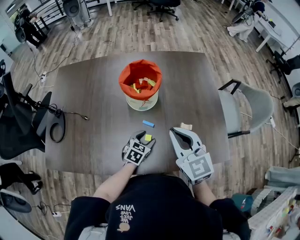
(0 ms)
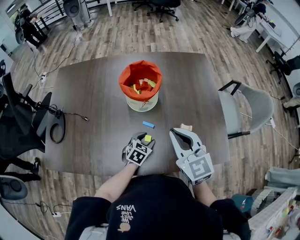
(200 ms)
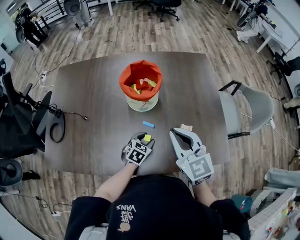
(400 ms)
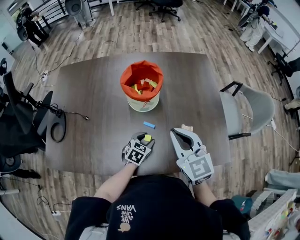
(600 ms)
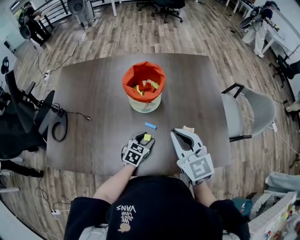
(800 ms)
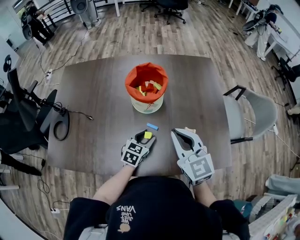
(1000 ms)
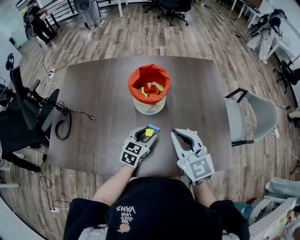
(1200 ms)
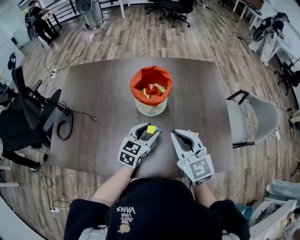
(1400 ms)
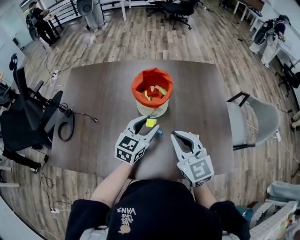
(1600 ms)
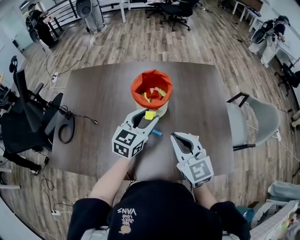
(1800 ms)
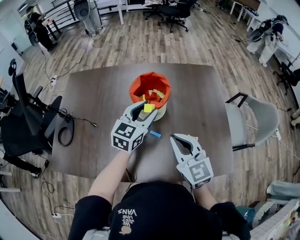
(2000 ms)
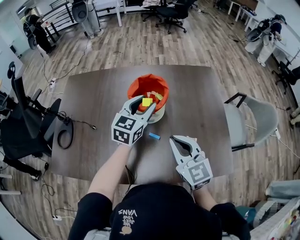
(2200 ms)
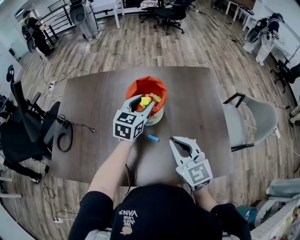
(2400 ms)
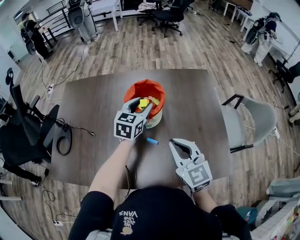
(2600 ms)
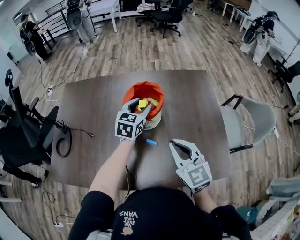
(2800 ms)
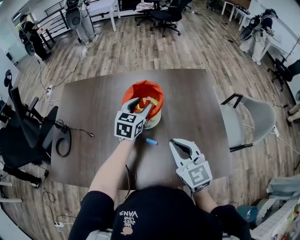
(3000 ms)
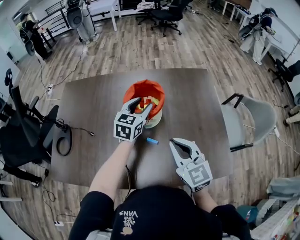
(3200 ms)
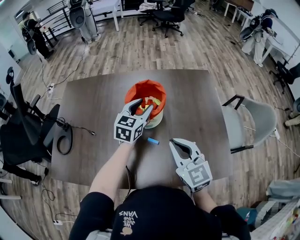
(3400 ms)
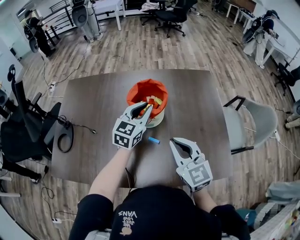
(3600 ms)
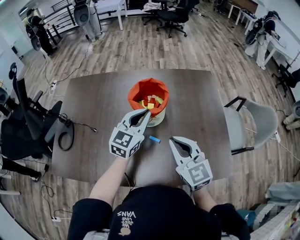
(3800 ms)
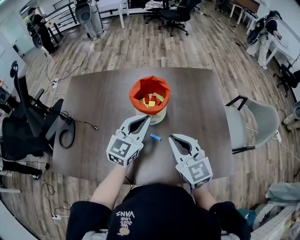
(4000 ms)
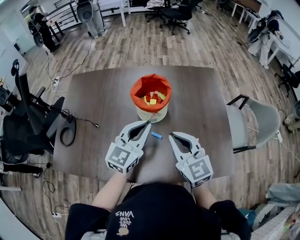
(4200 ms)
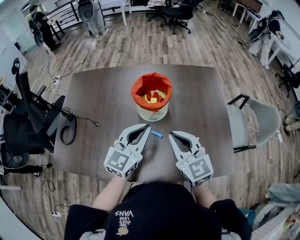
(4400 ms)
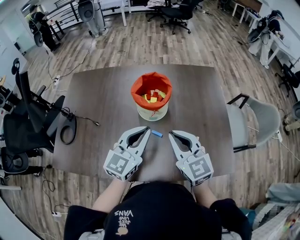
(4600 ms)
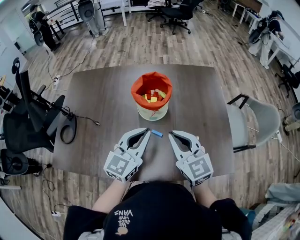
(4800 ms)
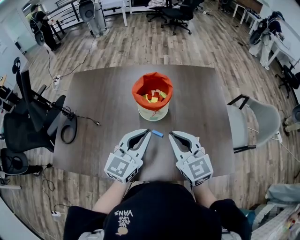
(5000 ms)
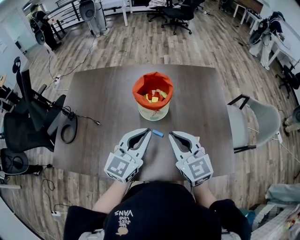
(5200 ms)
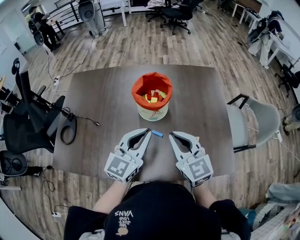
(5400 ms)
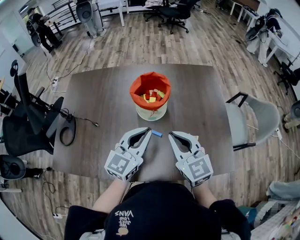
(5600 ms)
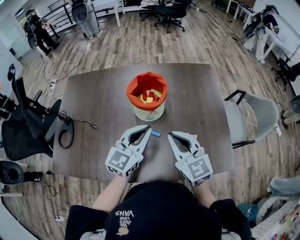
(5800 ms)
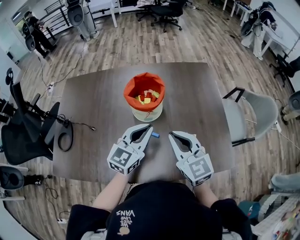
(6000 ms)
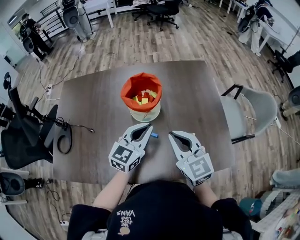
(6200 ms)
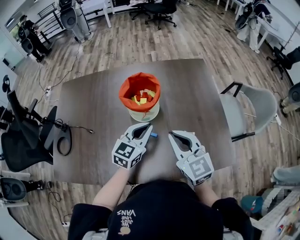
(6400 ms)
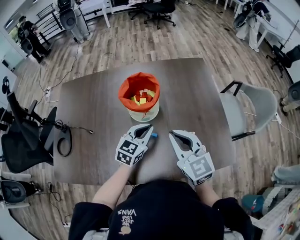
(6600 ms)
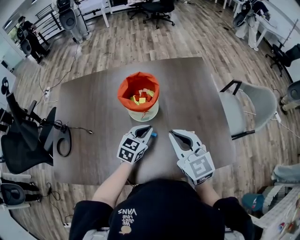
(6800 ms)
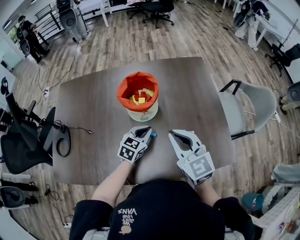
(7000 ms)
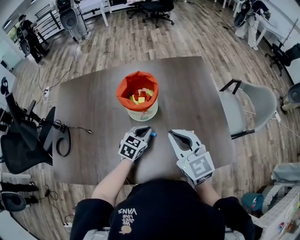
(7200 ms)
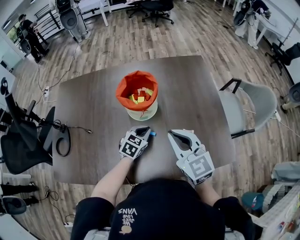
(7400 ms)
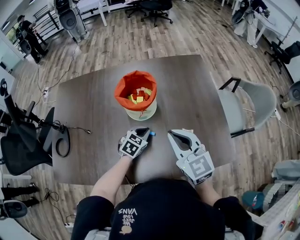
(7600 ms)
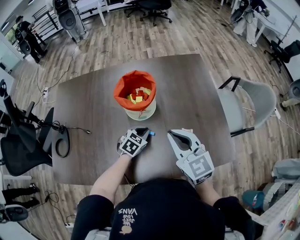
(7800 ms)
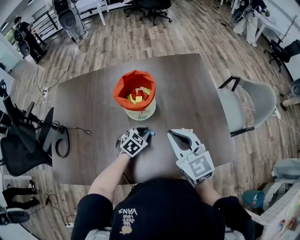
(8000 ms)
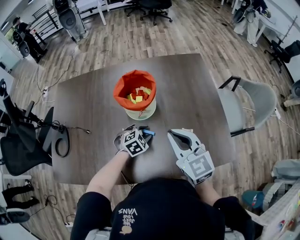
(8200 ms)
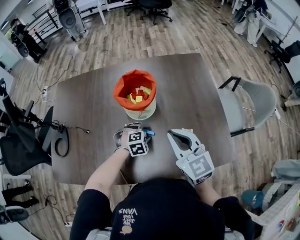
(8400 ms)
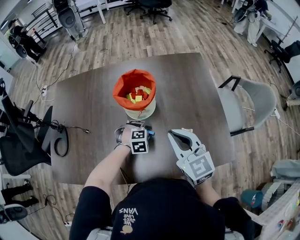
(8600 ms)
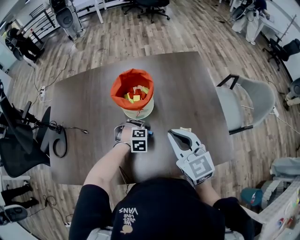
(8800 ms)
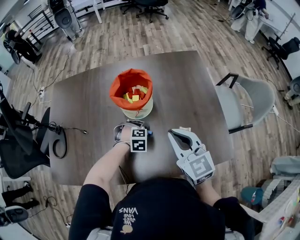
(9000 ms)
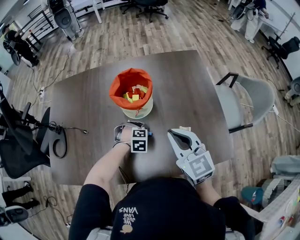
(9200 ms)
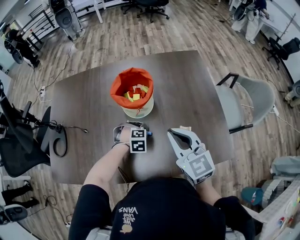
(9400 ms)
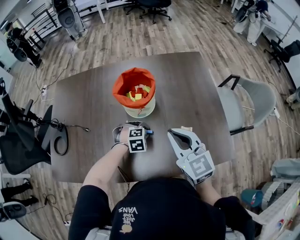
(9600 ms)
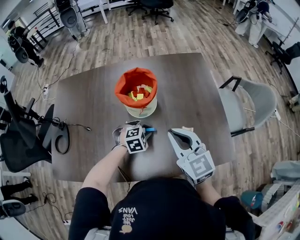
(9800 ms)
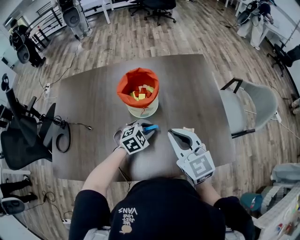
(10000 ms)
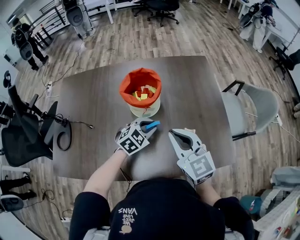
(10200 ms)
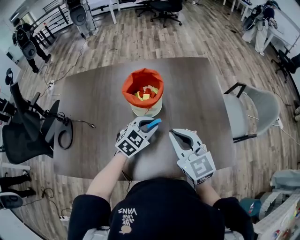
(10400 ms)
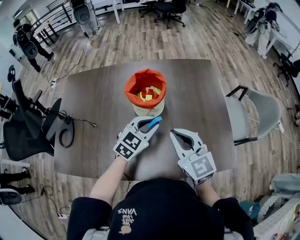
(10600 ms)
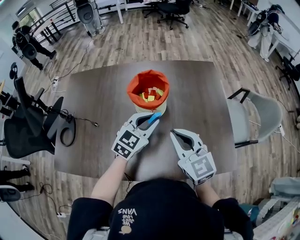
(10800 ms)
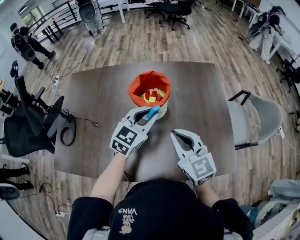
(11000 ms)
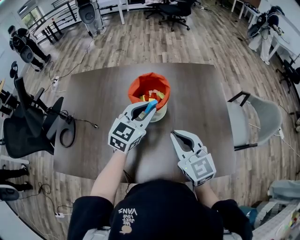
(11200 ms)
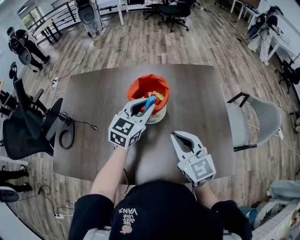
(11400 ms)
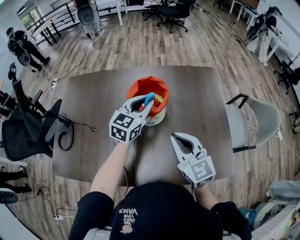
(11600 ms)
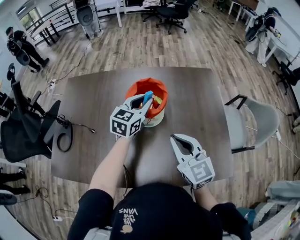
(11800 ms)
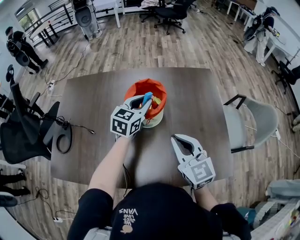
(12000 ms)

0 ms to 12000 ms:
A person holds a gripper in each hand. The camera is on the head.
0 ms to 1600 ms: The left gripper goes approximately 20 cm upward, and swivels about 30 degrees.
1600 ms to 3000 ms: The left gripper heads forward, covering approximately 15 cm.
3000 ms to 4400 ms: The left gripper moves backward, some 15 cm, and closes up.
4400 ms to 6000 ms: The grippers make only small movements.
6000 ms to 7600 ms: The left gripper is displaced downward by approximately 20 cm, and angles its fingers downward, by about 40 degrees.
7600 ms to 9000 ms: The left gripper heads downward, covering approximately 5 cm, rolls clockwise, seen from behind, by some 50 degrees, and opens.
9000 ms to 10400 ms: The left gripper heads upward, covering approximately 15 cm, and tips its fingers upward by roughly 40 degrees.
10400 ms to 12000 ms: The left gripper shifts roughly 15 cm forward and upward, and rotates about 30 degrees.

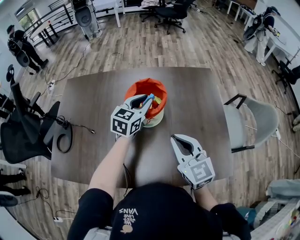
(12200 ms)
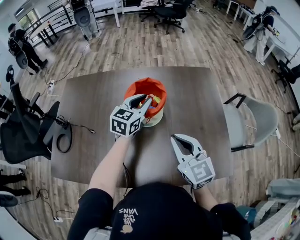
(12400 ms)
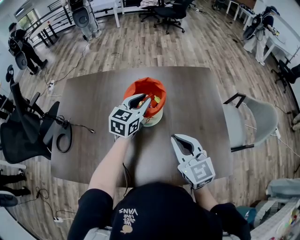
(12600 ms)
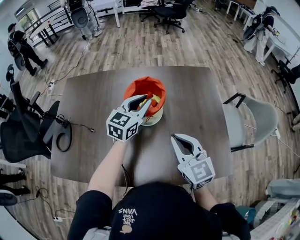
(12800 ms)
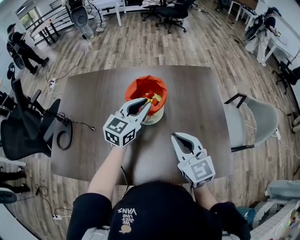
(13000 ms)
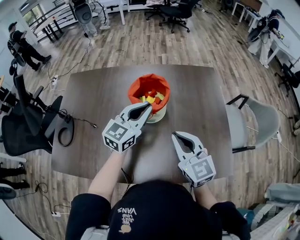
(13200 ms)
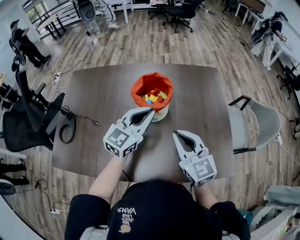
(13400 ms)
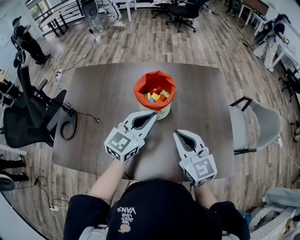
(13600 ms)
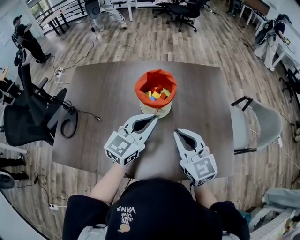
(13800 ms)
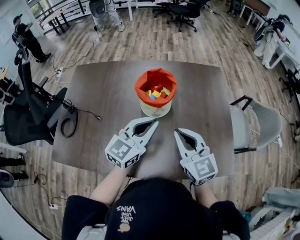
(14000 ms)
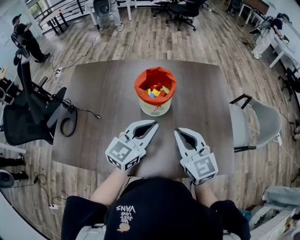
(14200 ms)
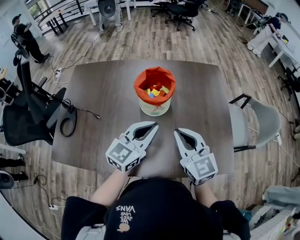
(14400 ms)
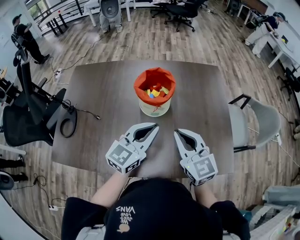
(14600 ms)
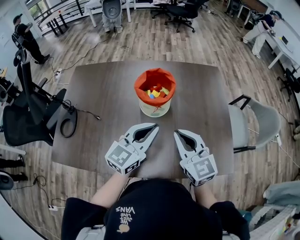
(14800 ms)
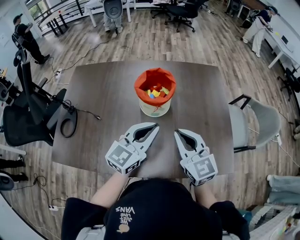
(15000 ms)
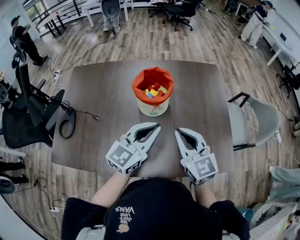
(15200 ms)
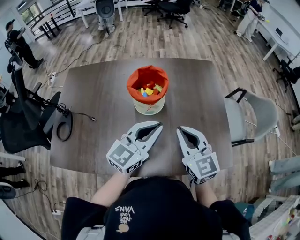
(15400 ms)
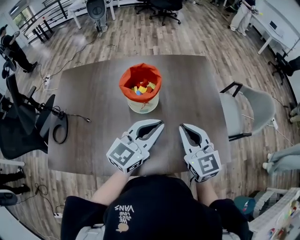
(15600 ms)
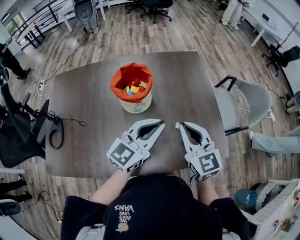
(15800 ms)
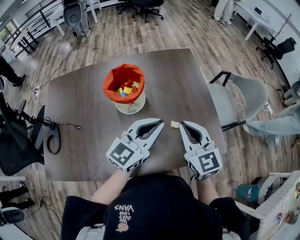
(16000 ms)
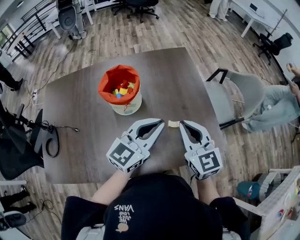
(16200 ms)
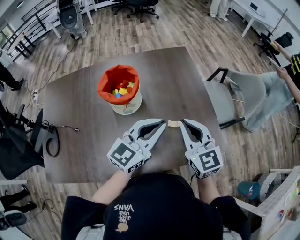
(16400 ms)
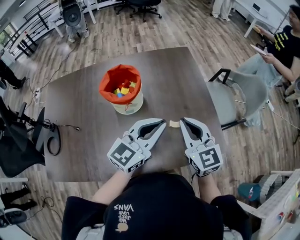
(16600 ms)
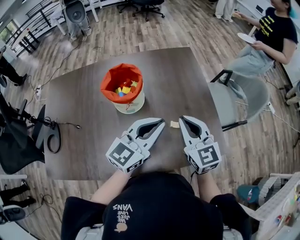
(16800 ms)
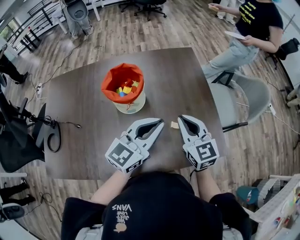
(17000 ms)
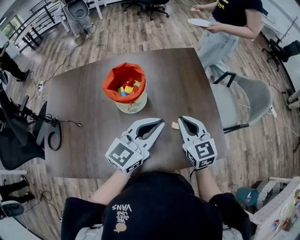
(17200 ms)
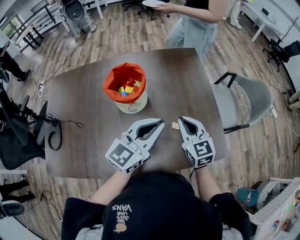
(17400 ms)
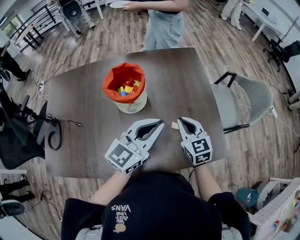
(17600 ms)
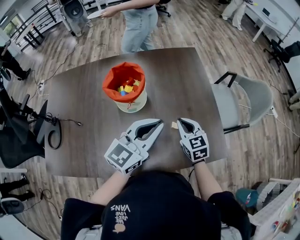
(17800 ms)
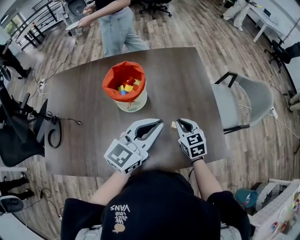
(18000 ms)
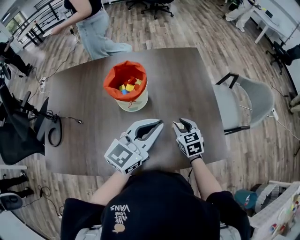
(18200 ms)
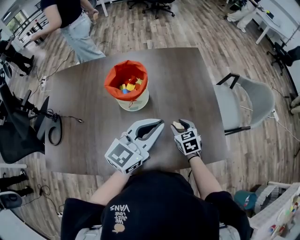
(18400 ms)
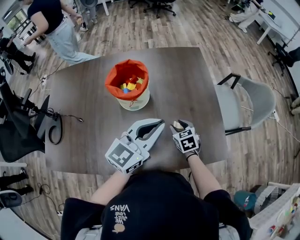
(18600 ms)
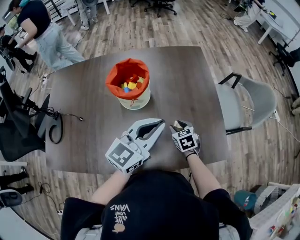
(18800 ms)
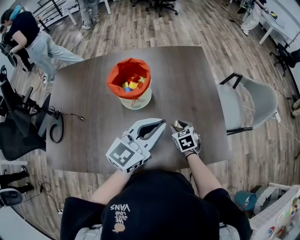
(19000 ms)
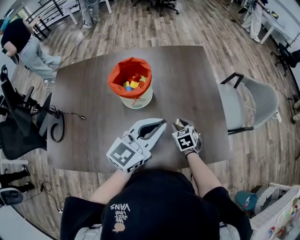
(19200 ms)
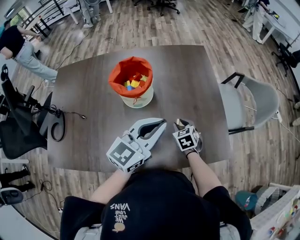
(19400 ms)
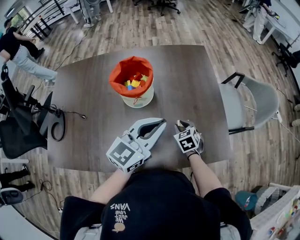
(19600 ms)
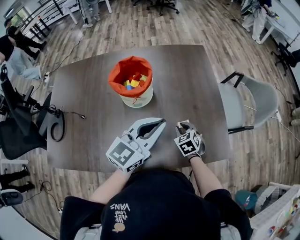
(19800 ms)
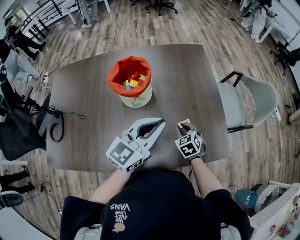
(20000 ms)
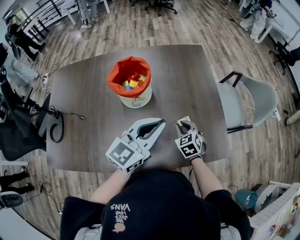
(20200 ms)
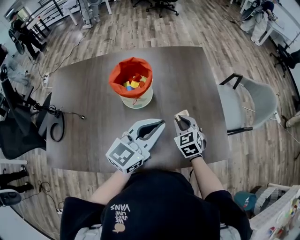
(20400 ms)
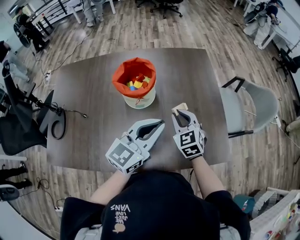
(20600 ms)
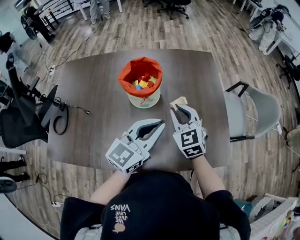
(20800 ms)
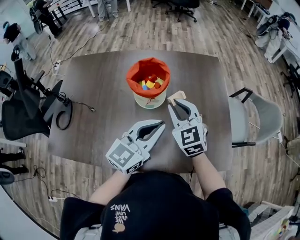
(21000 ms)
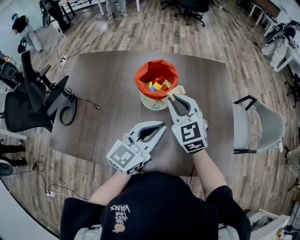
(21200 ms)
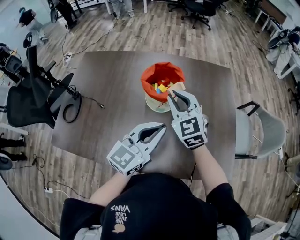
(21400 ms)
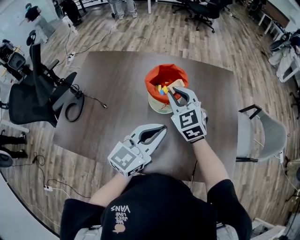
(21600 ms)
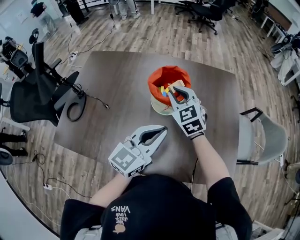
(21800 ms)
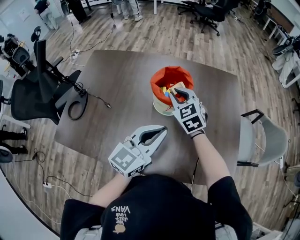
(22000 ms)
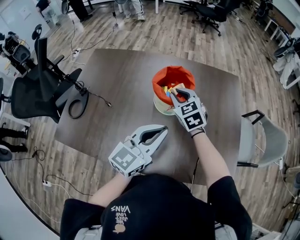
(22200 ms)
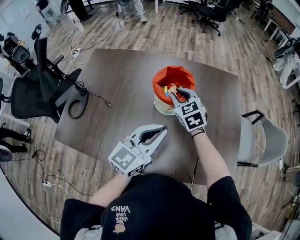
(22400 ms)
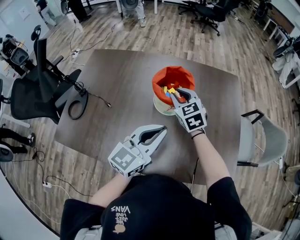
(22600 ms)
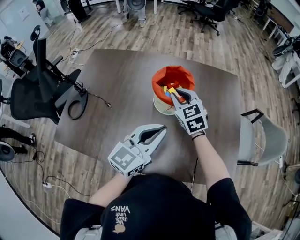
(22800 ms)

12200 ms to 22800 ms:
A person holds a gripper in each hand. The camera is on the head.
12200 ms to 13800 ms: The left gripper moves backward, approximately 15 cm.
13800 ms to 15200 ms: The grippers move only a little.
15200 ms to 16800 ms: Both grippers travel together to the right, some 10 cm.
16800 ms to 18200 ms: The right gripper moves downward, roughly 20 cm, and rotates about 30 degrees.
18200 ms to 19800 ms: The right gripper is displaced downward by some 5 cm.
19800 ms to 21200 ms: The left gripper travels to the left by some 5 cm, while the right gripper is displaced upward and to the left by some 30 cm, and tips its fingers upward by some 40 degrees.
21200 ms to 22800 ms: The right gripper travels forward and to the left by about 10 cm.

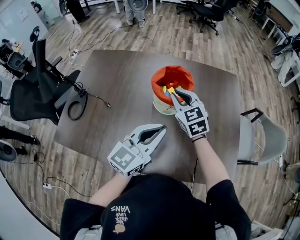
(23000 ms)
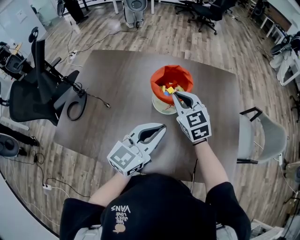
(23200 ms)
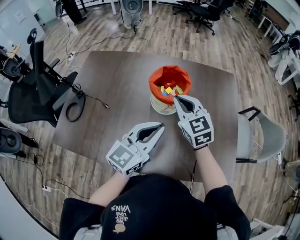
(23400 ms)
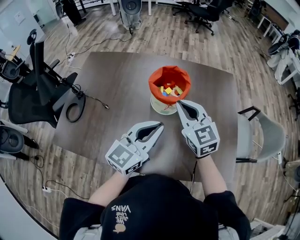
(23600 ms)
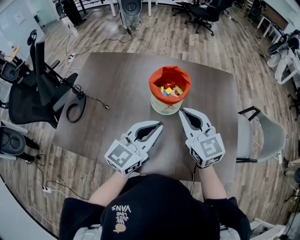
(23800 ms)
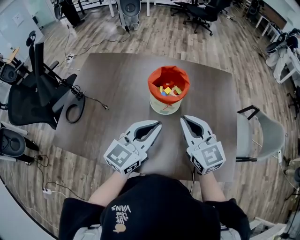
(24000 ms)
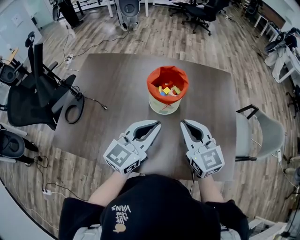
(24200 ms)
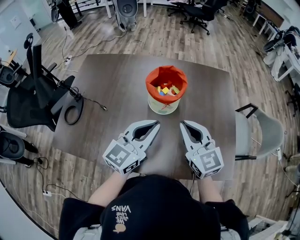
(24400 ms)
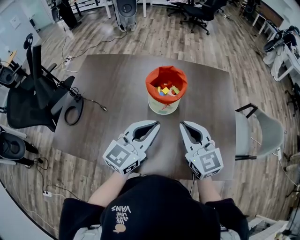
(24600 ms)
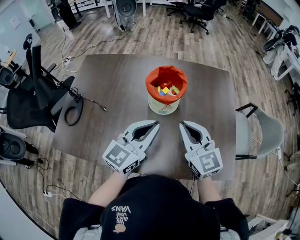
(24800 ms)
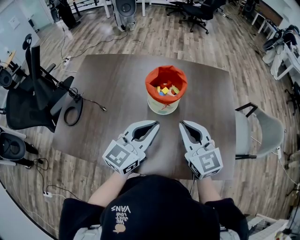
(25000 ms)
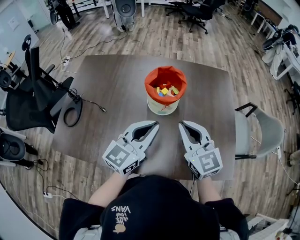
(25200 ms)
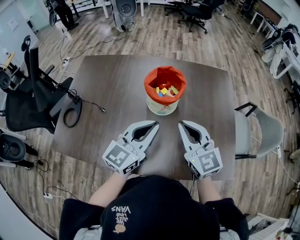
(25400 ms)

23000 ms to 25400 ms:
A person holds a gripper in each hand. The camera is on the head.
23000 ms to 24200 ms: The right gripper is displaced backward and to the right by roughly 15 cm.
24200 ms to 25400 ms: Neither gripper changes place.
